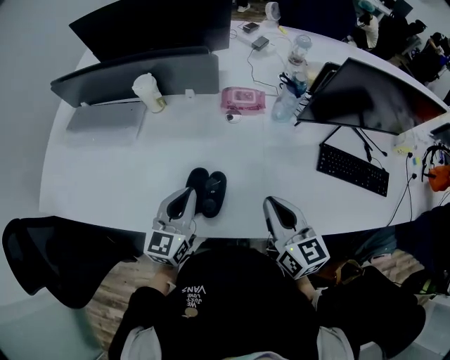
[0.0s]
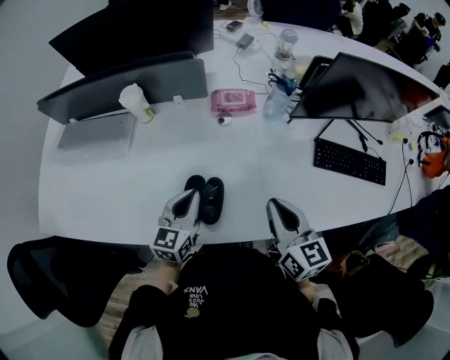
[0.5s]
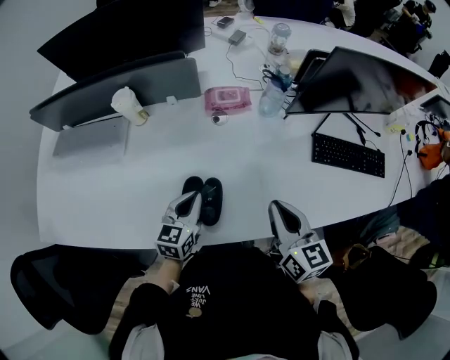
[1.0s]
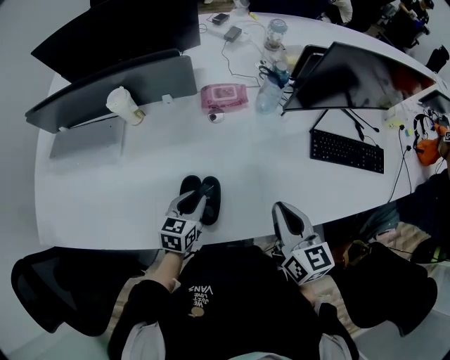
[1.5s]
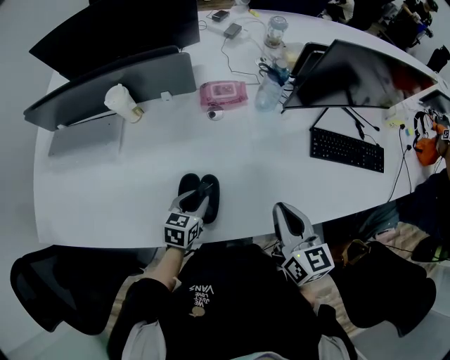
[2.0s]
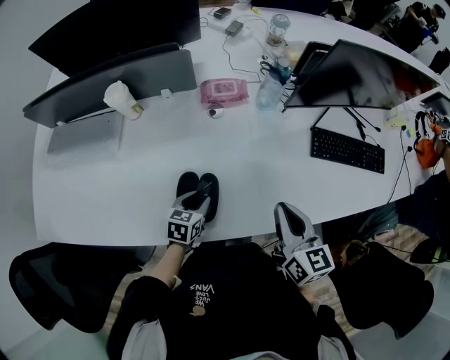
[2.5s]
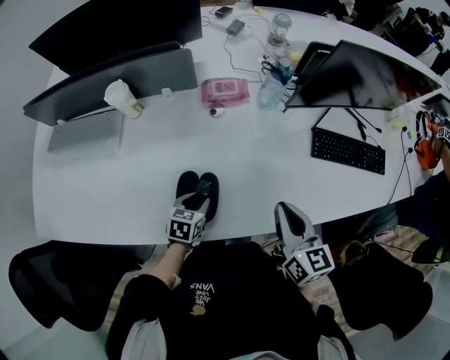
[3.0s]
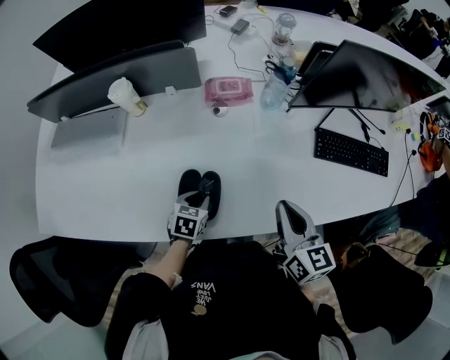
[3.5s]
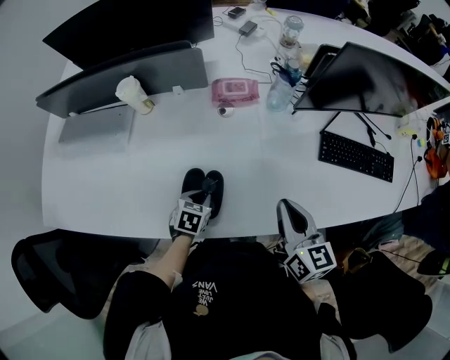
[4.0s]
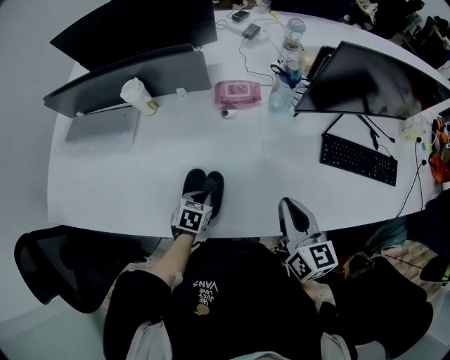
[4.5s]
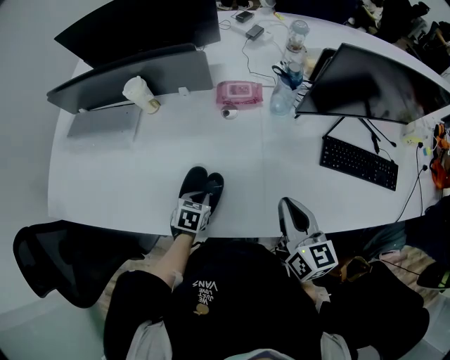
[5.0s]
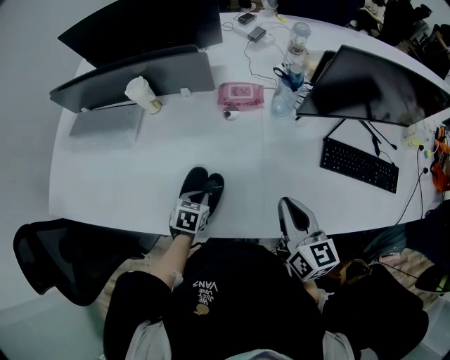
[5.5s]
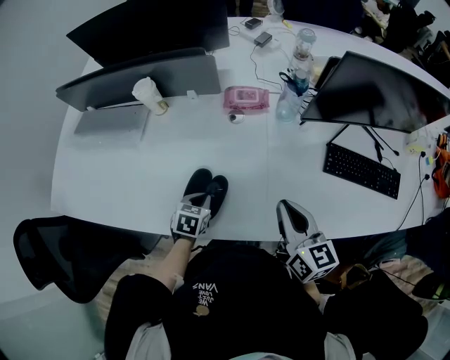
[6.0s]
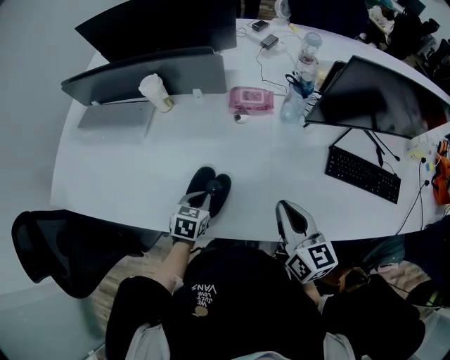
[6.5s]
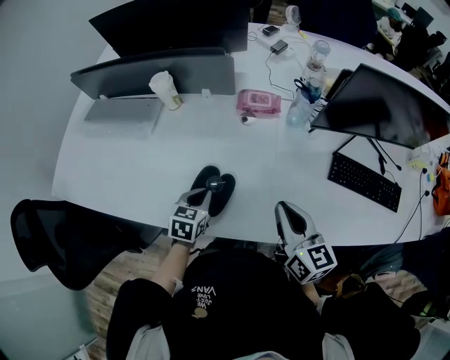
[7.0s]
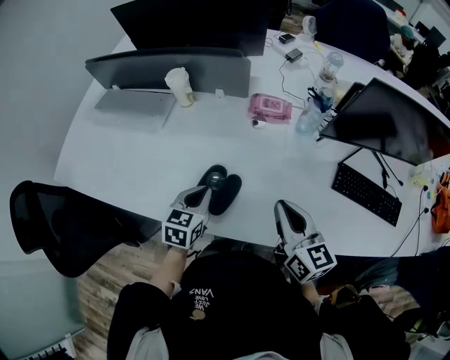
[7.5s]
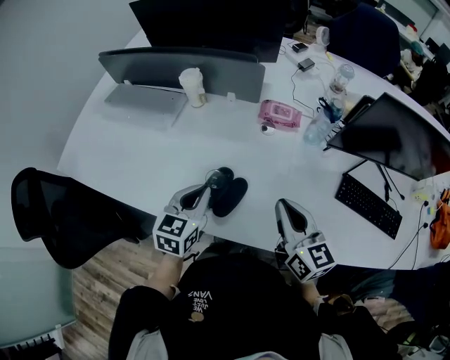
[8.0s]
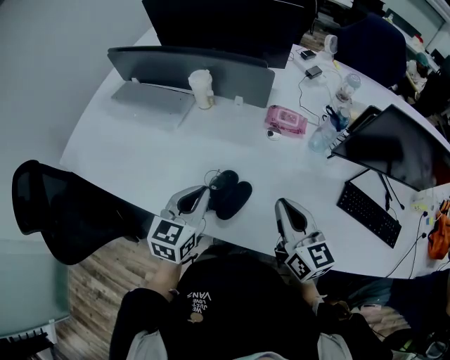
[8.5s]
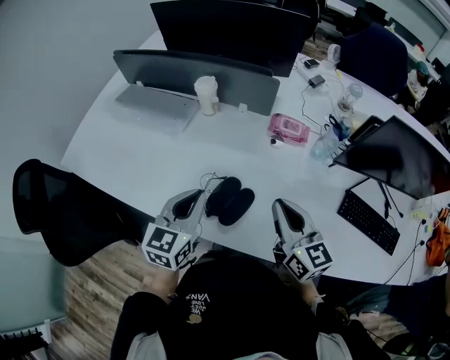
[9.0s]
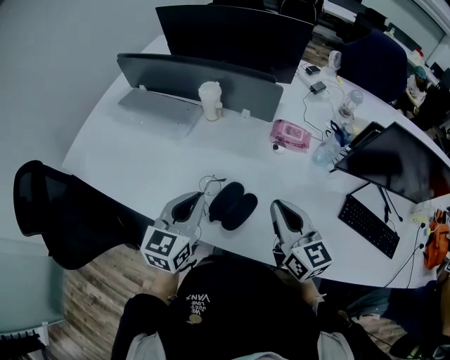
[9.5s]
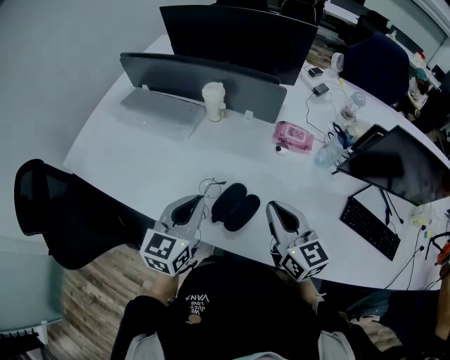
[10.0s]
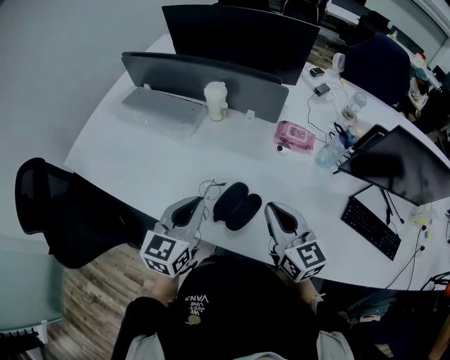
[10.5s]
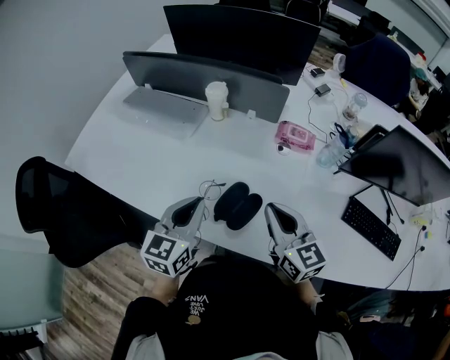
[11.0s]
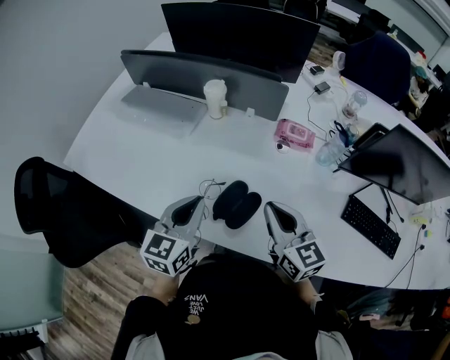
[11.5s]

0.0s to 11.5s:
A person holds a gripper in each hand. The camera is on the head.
0.0s to 2.0s: The left gripper is displaced downward by approximately 15 cm, rotates roughly 30 degrees, and opens.
2.0s to 4.0s: There are only small adjustments of the grippers.
4.0s to 6.0s: The grippers stay close to where they were, moving slightly.
6.0s to 7.5s: The right gripper changes place by about 5 cm, while the left gripper is displaced upward by about 10 cm, and turns by roughly 20 degrees.
7.5s to 9.5s: The left gripper heads upward and to the left, covering some 15 cm, and rotates roughly 20 degrees; the right gripper goes about 10 cm to the left.
9.5s to 11.5s: The grippers stay close to where they were, moving slightly.

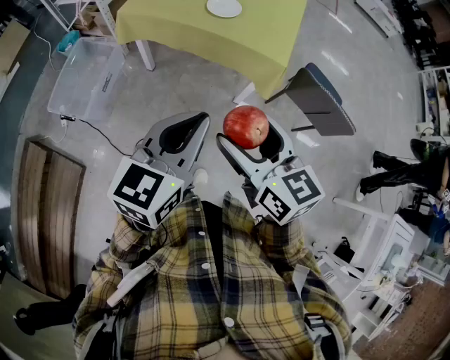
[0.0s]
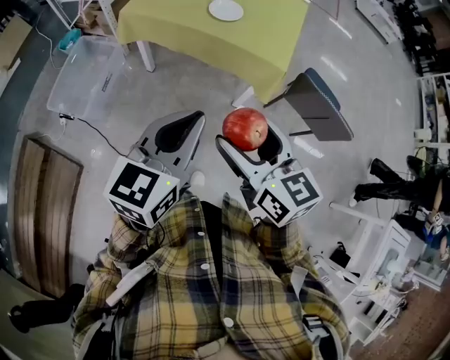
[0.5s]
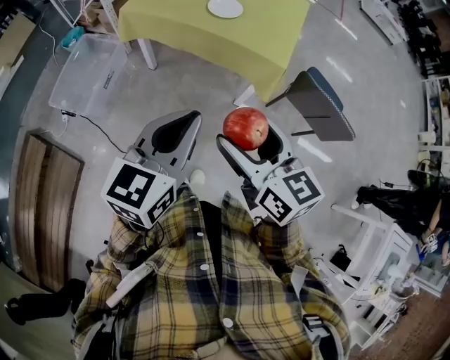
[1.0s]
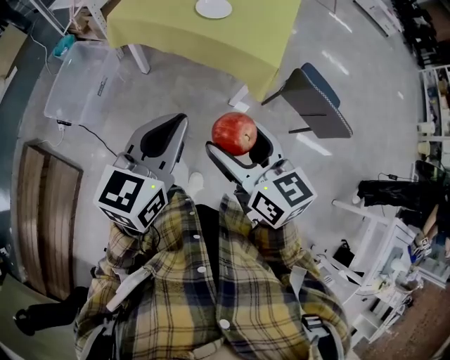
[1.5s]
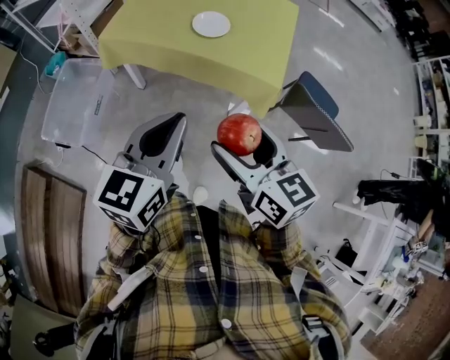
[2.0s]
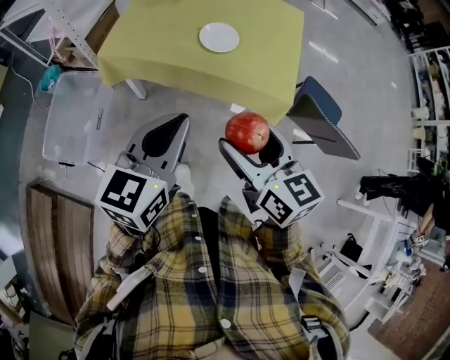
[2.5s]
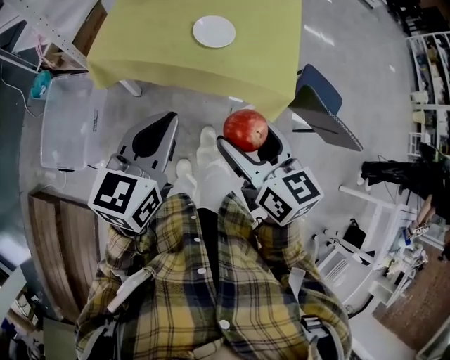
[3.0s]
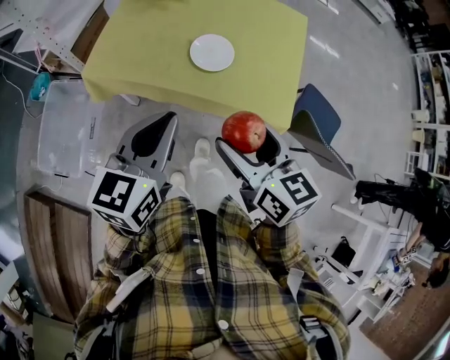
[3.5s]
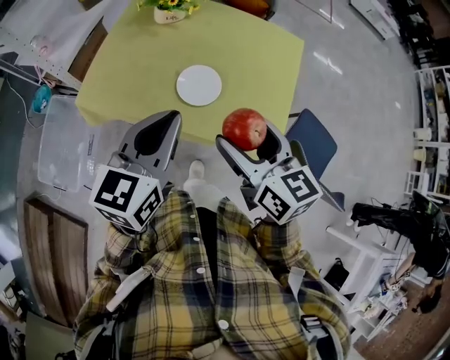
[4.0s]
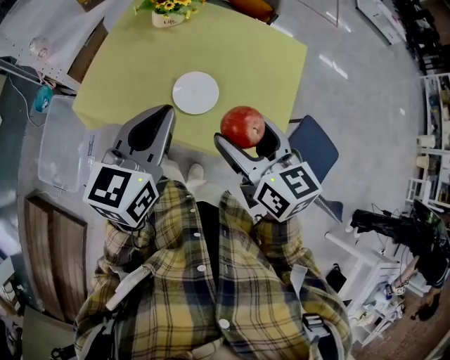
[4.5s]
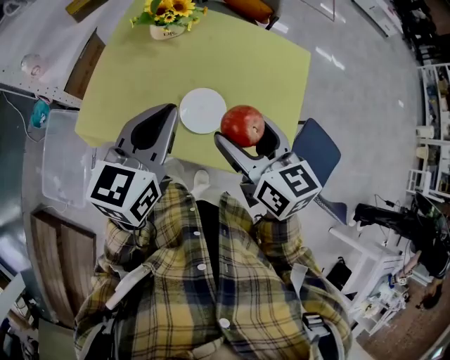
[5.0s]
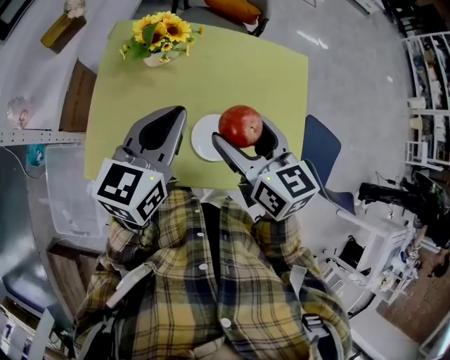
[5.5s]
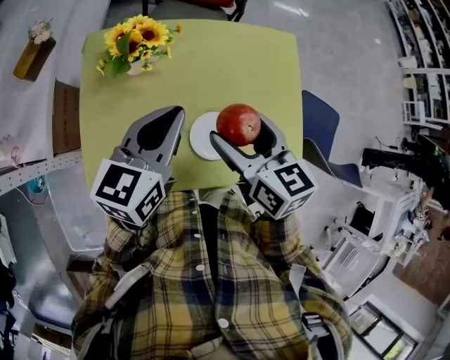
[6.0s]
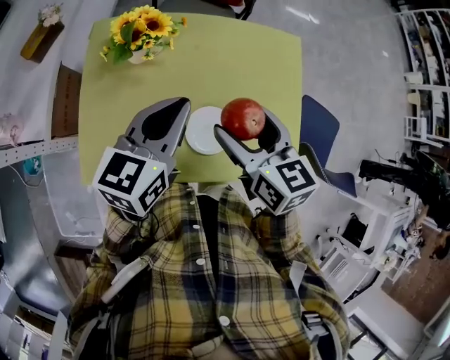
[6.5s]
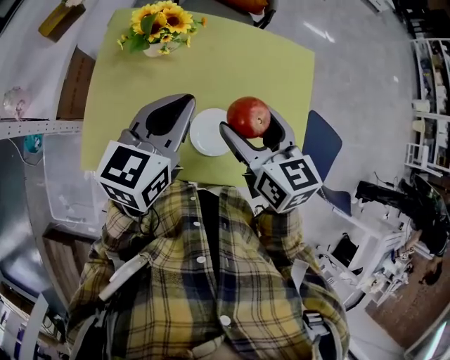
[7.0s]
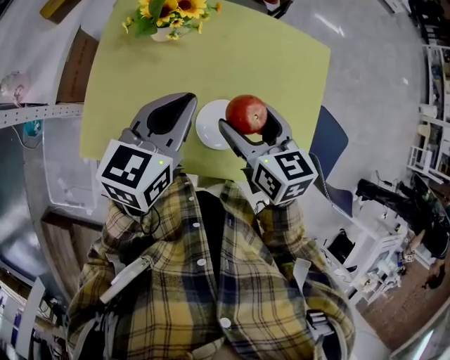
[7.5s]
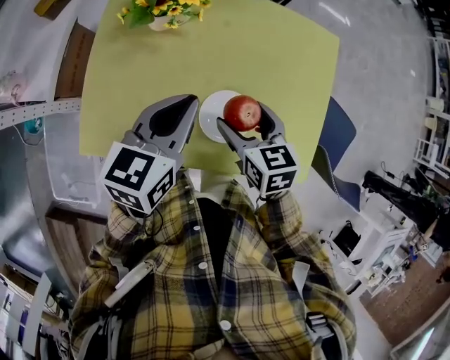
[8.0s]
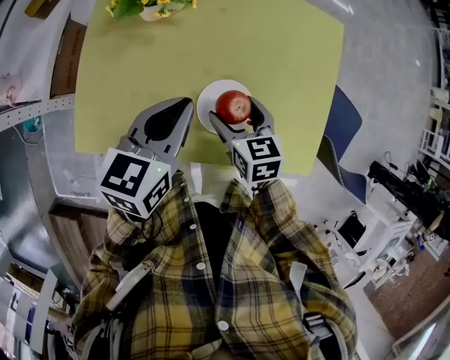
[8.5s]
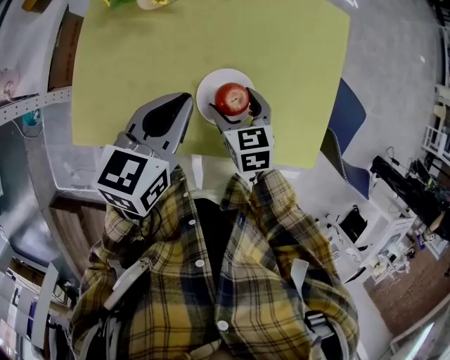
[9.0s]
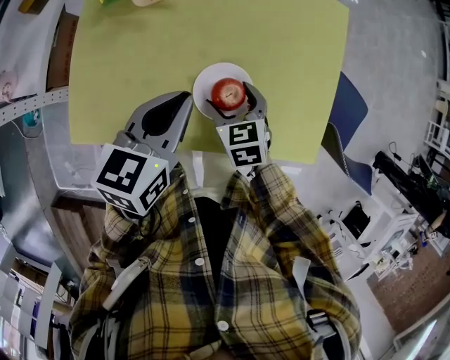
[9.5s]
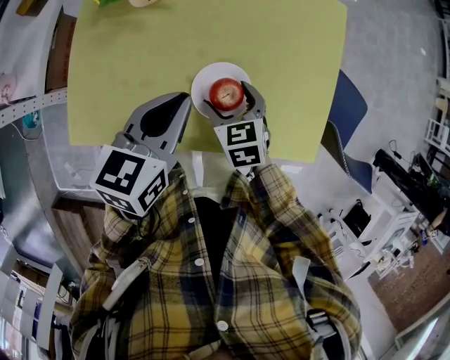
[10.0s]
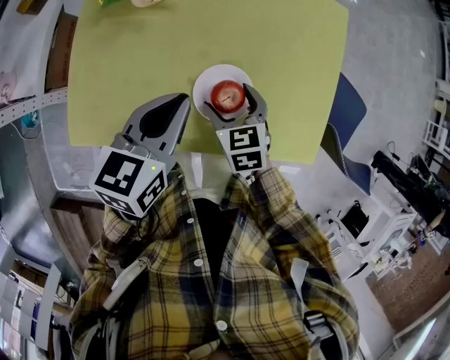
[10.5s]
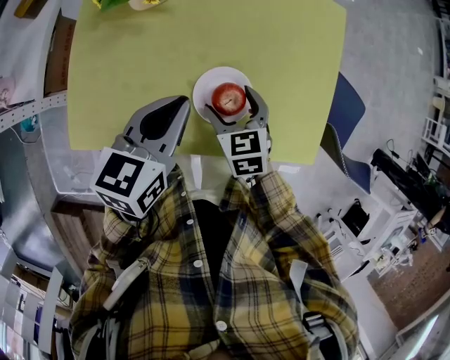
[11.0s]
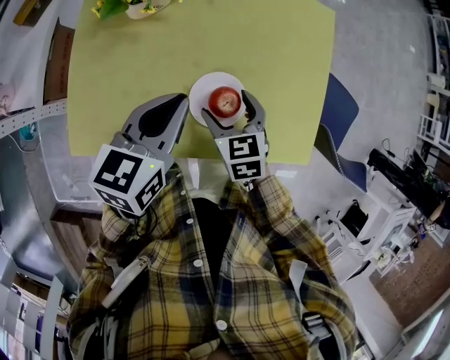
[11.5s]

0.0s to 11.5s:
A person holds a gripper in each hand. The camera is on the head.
0.0s to 2.0s: Both grippers travel together forward, roughly 10 cm.
2.0s to 4.0s: Both grippers move forward, roughly 30 cm.
4.0s to 6.0s: The right gripper goes some 25 cm forward and to the left, and rotates some 20 degrees; the left gripper heads forward, covering some 25 cm, and swivels roughly 20 degrees.
6.0s to 7.5s: The right gripper heads downward, covering approximately 5 cm.
7.5s to 9.5s: The right gripper is displaced downward by roughly 20 cm, and changes its angle by roughly 20 degrees. The left gripper heads downward, covering approximately 10 cm.
9.5s to 11.5s: The grippers move only a little.

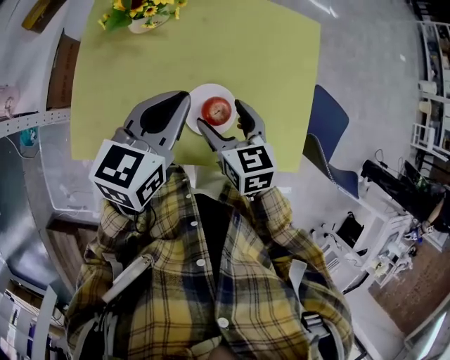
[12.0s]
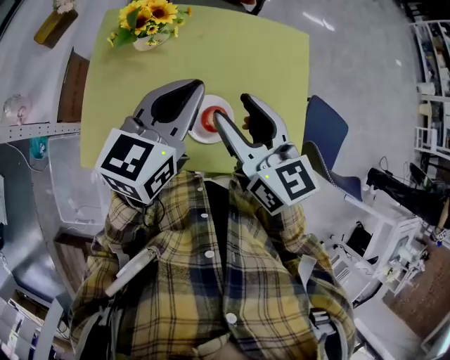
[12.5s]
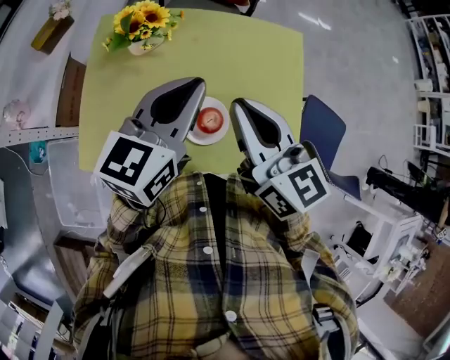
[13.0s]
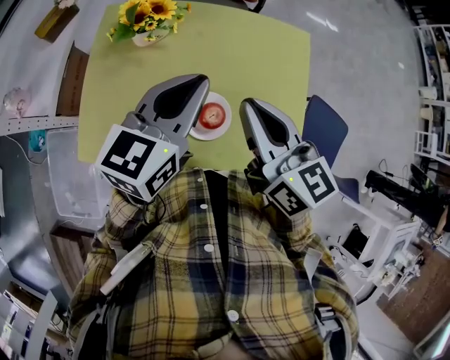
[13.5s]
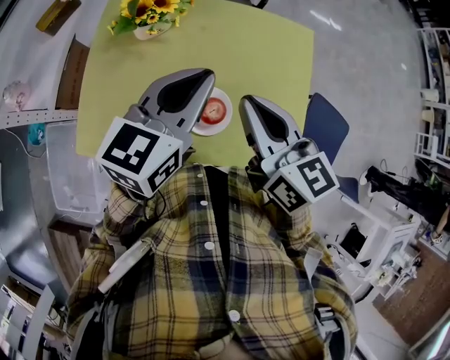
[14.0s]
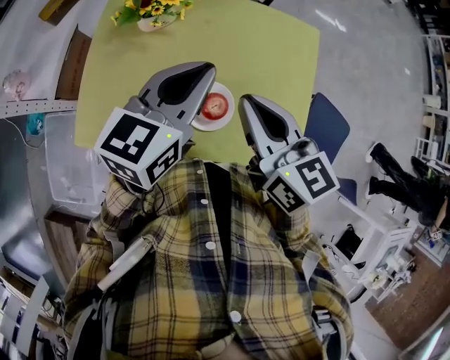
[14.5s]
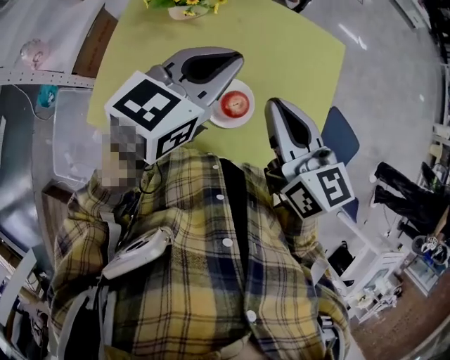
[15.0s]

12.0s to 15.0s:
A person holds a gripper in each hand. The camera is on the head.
12.0s to 13.5s: The left gripper heads upward, covering approximately 10 cm. Meanwhile the right gripper heads upward, covering some 20 cm, turns by roughly 30 degrees, and closes up.
13.5s to 15.0s: The grippers stay close to where they were, moving slightly.

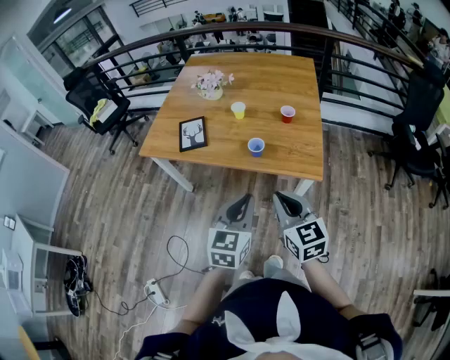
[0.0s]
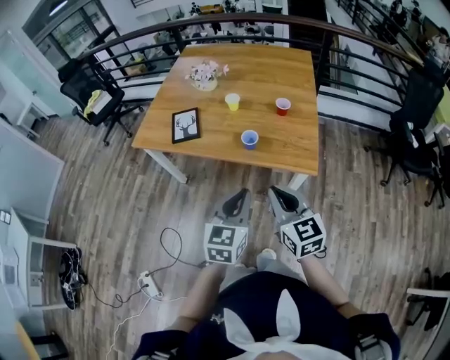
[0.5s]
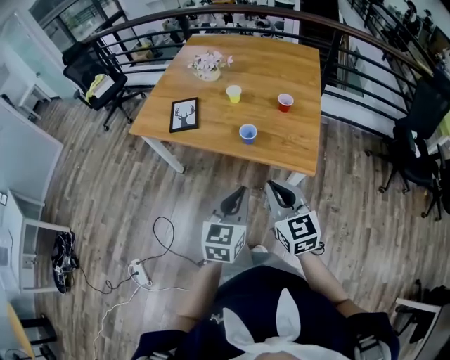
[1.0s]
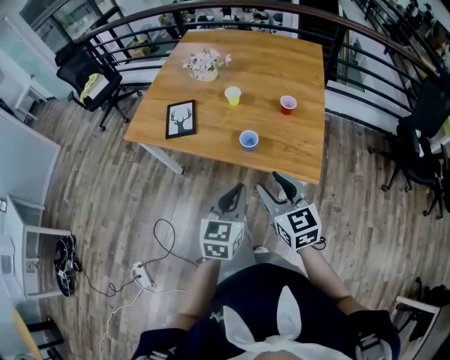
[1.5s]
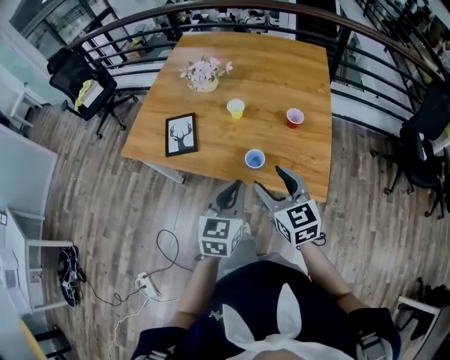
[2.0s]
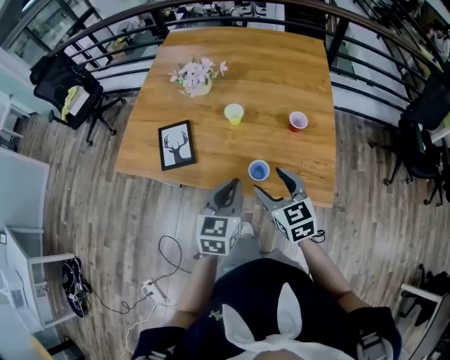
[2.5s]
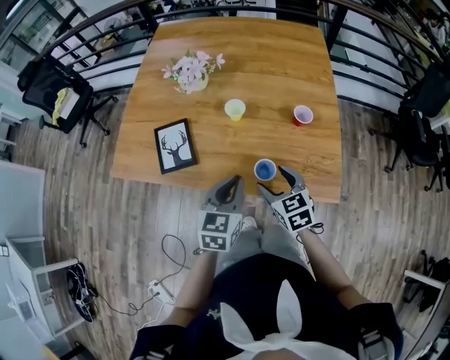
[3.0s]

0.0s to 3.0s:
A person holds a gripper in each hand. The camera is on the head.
0.0s to 1.5s: Both grippers move forward, some 10 cm. The right gripper opens up.
1.5s to 3.0s: The right gripper heads forward and downward, covering some 25 cm, turns by about 20 degrees, and opens, while the left gripper moves forward, roughly 25 cm.
